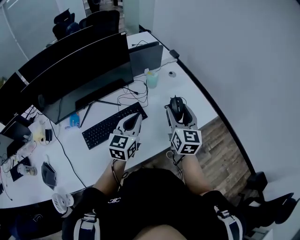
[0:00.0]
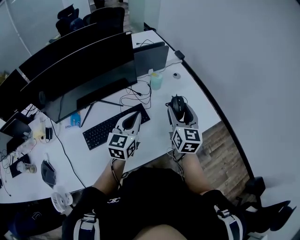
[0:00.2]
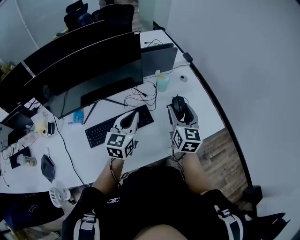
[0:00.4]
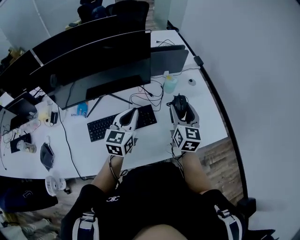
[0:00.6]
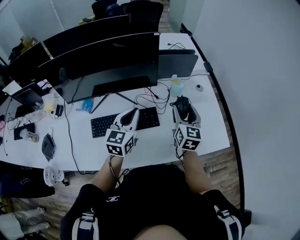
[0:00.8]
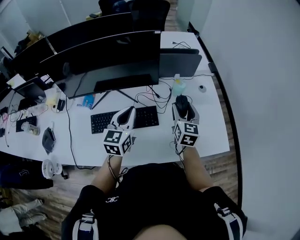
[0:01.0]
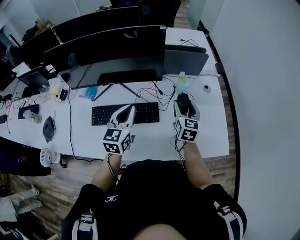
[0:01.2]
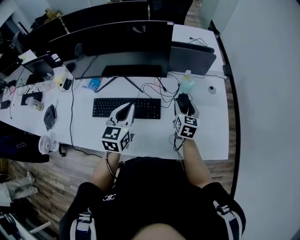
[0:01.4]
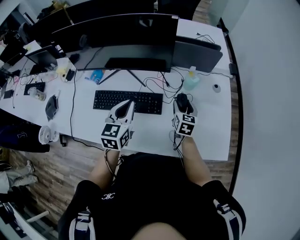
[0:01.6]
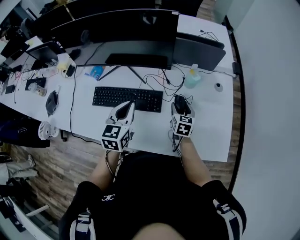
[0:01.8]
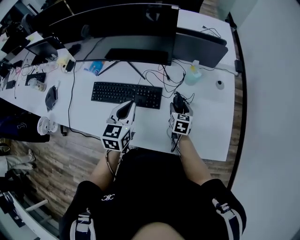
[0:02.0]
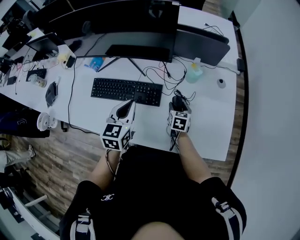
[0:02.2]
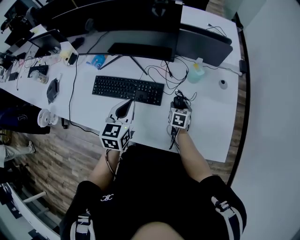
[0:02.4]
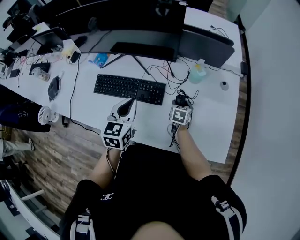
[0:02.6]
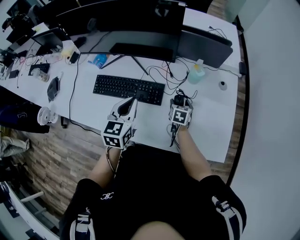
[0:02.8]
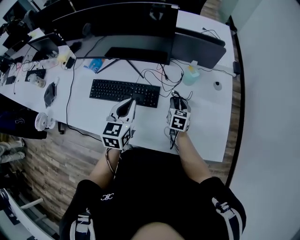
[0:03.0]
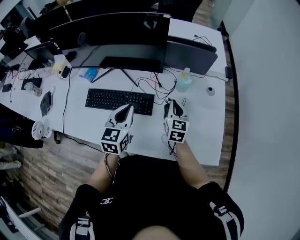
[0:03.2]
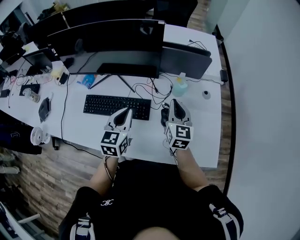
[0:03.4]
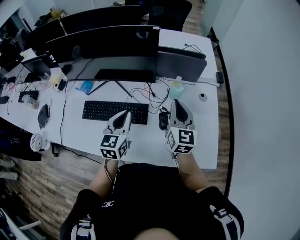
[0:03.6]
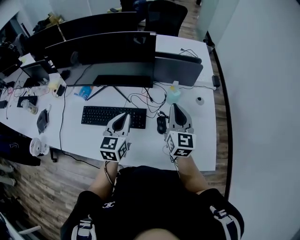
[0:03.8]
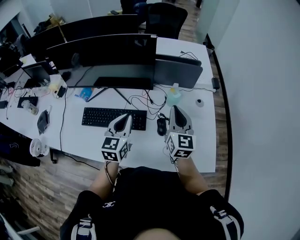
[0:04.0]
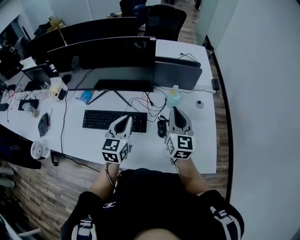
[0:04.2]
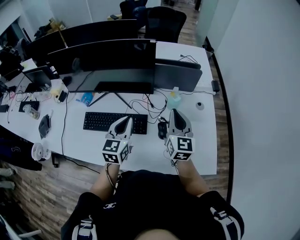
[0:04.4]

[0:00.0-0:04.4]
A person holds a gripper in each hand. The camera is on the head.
0:00.0 to 0:01.4: The right gripper ends up about 25 cm from where it was, and swivels some 30 degrees. The left gripper shifts by about 10 cm, and changes its angle by about 40 degrees.
0:01.4 to 0:03.0: The left gripper moves about 5 cm. Meanwhile the right gripper travels downward by roughly 10 cm.
0:03.0 to 0:04.4: The right gripper shifts some 25 cm upward, points its fingers about 30 degrees further upward, and closes up, while the left gripper heads upward, covering approximately 5 cm.

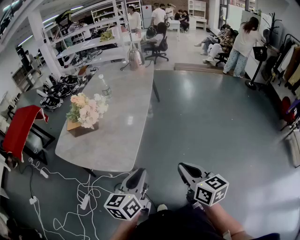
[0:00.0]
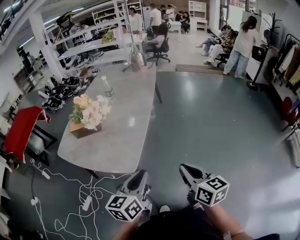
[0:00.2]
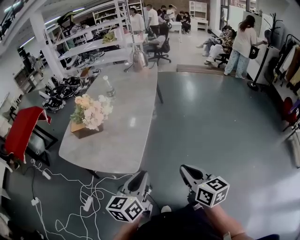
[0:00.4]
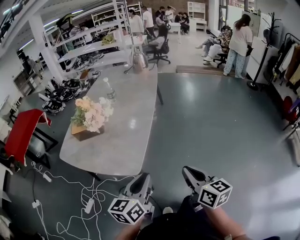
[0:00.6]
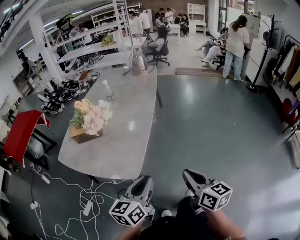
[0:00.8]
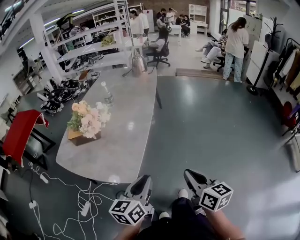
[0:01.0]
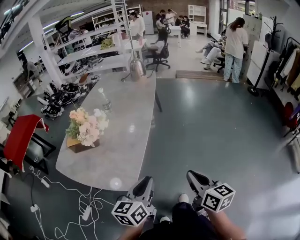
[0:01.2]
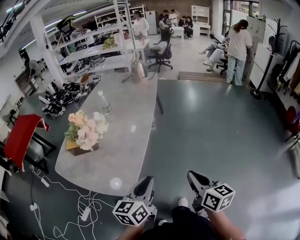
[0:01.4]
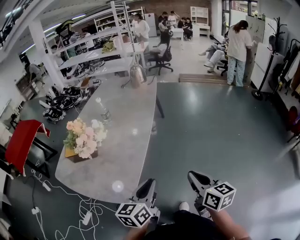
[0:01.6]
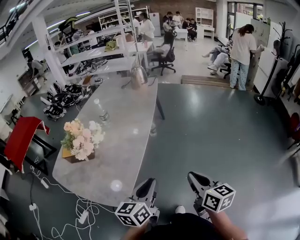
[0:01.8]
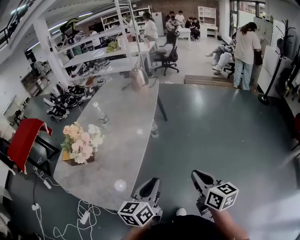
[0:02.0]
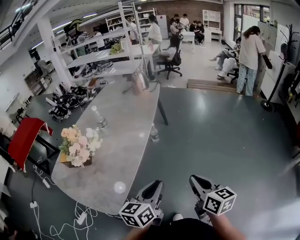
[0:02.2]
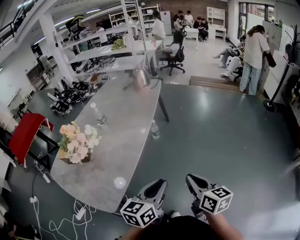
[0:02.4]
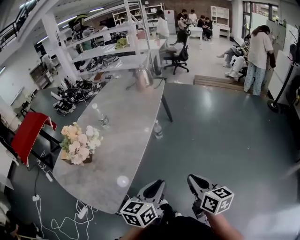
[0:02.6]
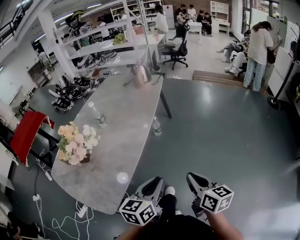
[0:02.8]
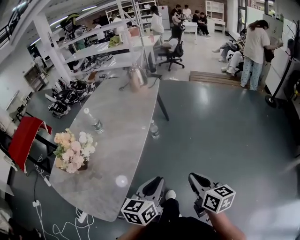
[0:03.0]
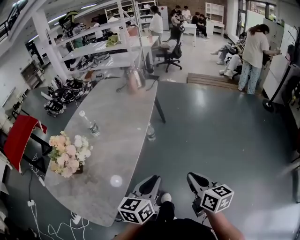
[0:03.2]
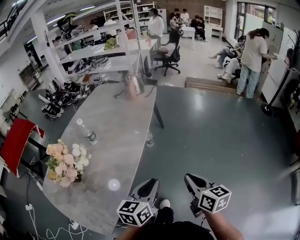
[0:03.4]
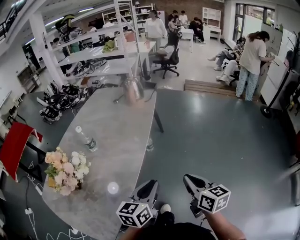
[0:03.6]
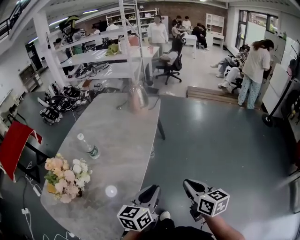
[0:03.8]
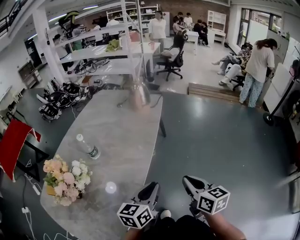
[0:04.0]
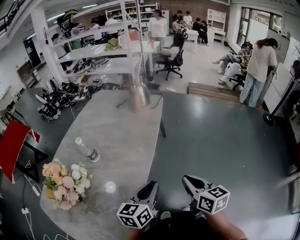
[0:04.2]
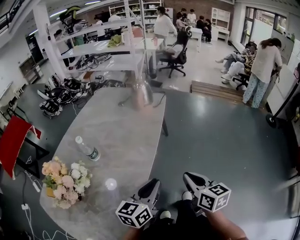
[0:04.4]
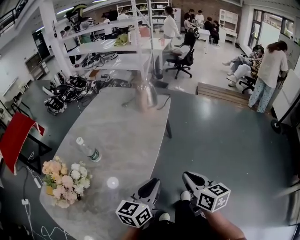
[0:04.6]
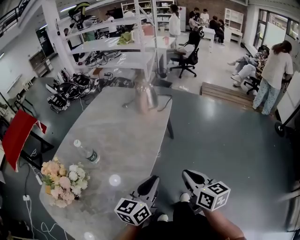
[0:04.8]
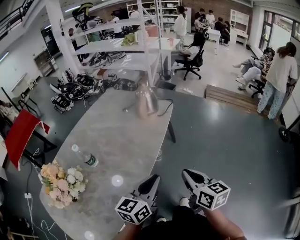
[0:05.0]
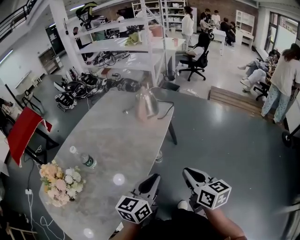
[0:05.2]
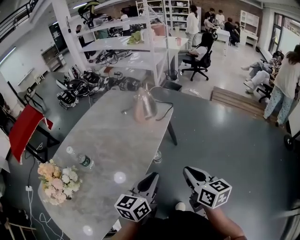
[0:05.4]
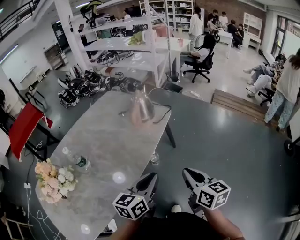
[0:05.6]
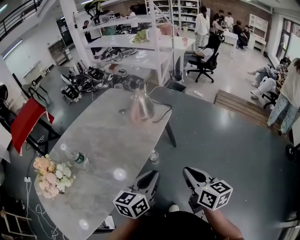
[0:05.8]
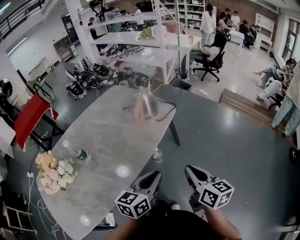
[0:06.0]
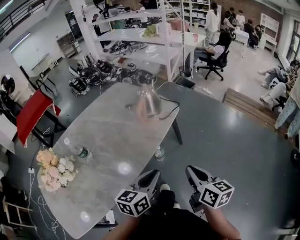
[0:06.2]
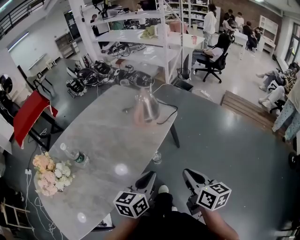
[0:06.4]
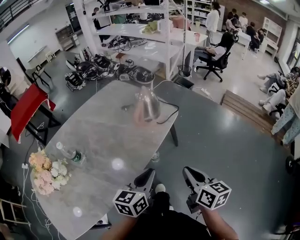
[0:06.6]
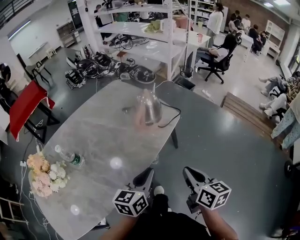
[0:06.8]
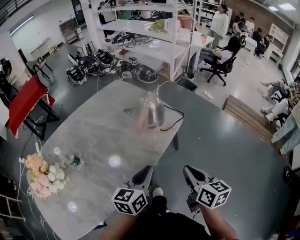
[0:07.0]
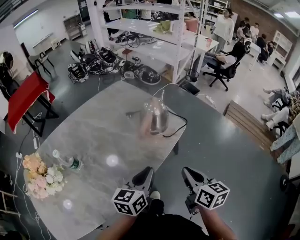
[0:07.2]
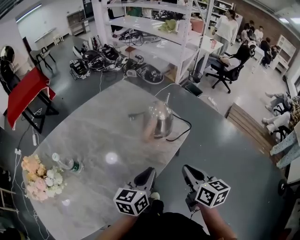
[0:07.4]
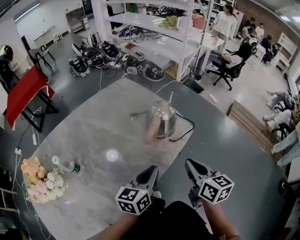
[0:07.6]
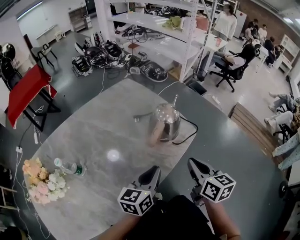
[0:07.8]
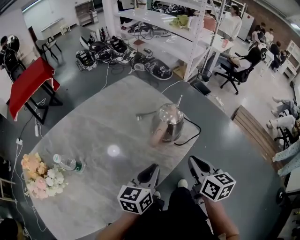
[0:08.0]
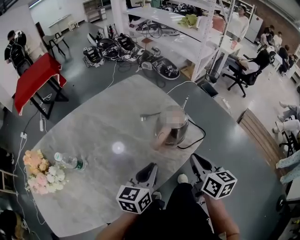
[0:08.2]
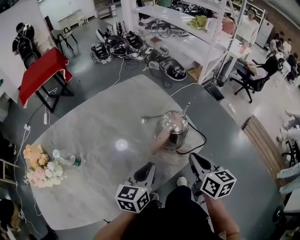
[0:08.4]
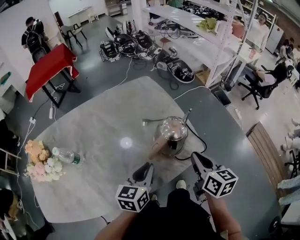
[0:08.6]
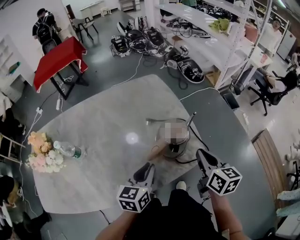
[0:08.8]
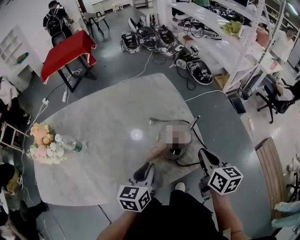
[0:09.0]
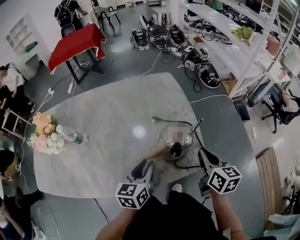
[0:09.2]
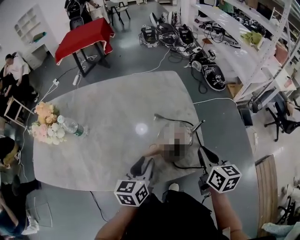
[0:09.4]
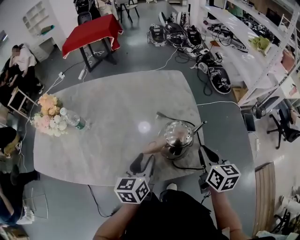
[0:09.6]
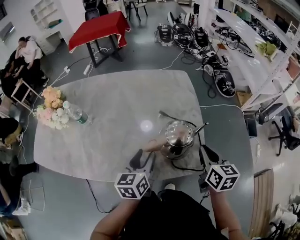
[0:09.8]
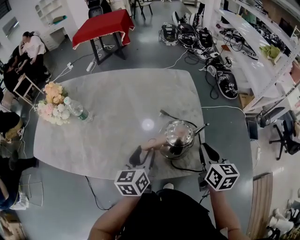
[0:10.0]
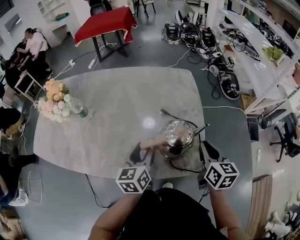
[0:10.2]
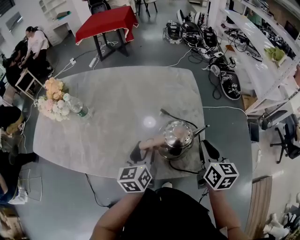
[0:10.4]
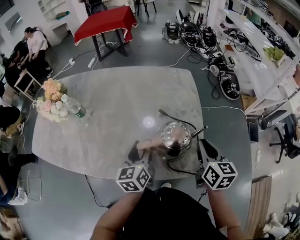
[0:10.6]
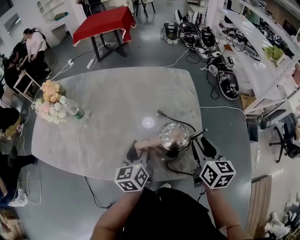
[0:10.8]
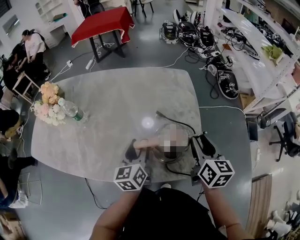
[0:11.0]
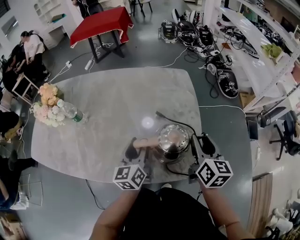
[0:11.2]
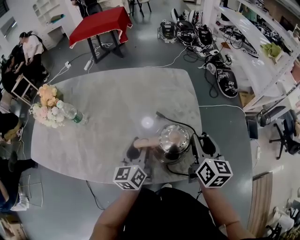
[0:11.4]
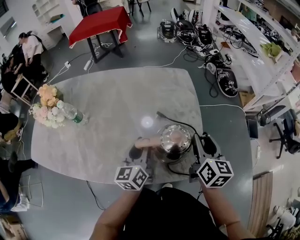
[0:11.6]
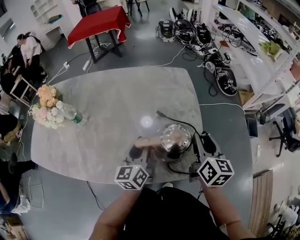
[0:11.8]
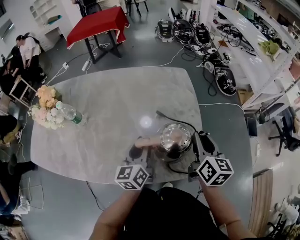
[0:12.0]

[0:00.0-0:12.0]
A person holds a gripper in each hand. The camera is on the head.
0:00.0 to 0:01.6: Both grippers travel together forward and to the right, some 15 cm.
0:01.6 to 0:03.0: The two grippers go roughly 20 cm forward and to the right.
0:03.0 to 0:04.4: The two grippers go roughly 25 cm forward.
0:04.4 to 0:06.0: Both grippers travel together forward and to the right, approximately 25 cm.
0:06.0 to 0:07.6: The grippers both shift forward by roughly 25 cm.
0:07.6 to 0:09.0: The right gripper ends up approximately 20 cm from where it was, and turns by approximately 20 degrees, while the left gripper shifts by about 10 cm, and changes its angle by approximately 30 degrees.
0:09.0 to 0:10.4: The left gripper changes its angle by about 30 degrees, and opens up. Meanwhile the right gripper shifts approximately 10 cm forward.
0:10.4 to 0:12.0: The grippers stay close to where they were, moving slightly.

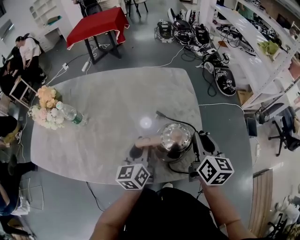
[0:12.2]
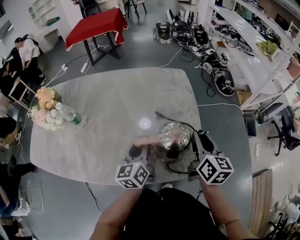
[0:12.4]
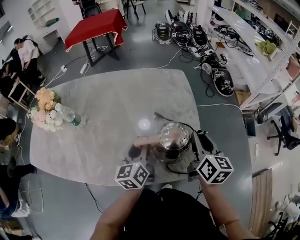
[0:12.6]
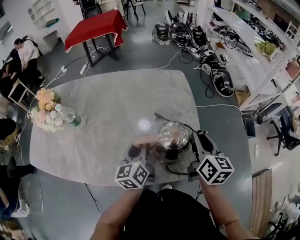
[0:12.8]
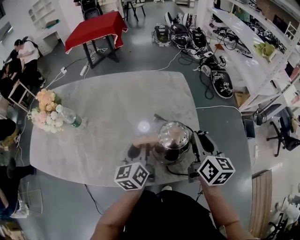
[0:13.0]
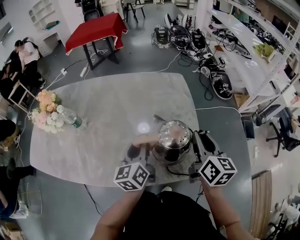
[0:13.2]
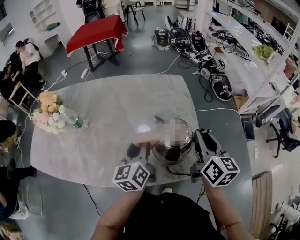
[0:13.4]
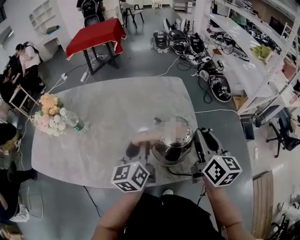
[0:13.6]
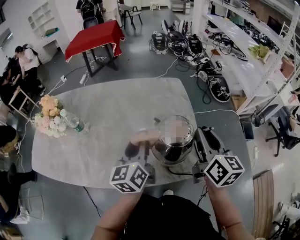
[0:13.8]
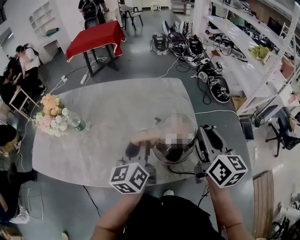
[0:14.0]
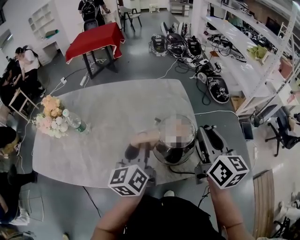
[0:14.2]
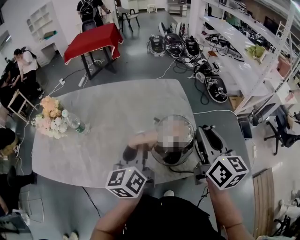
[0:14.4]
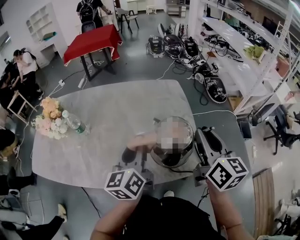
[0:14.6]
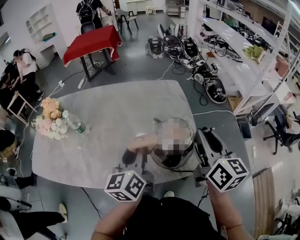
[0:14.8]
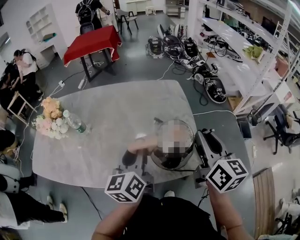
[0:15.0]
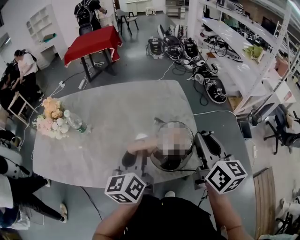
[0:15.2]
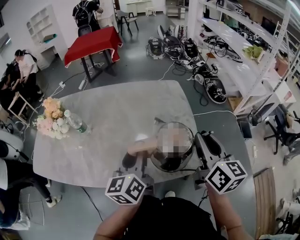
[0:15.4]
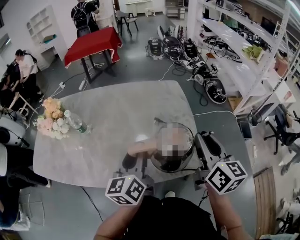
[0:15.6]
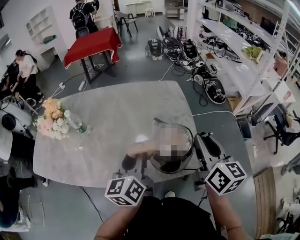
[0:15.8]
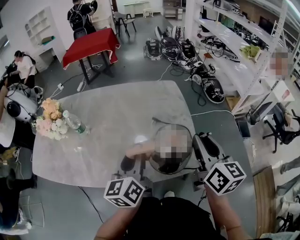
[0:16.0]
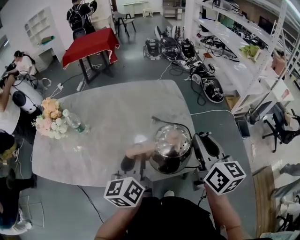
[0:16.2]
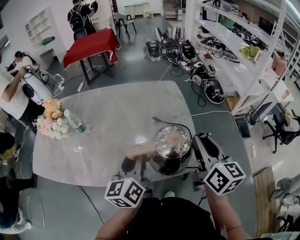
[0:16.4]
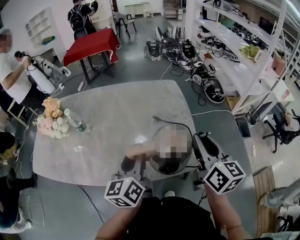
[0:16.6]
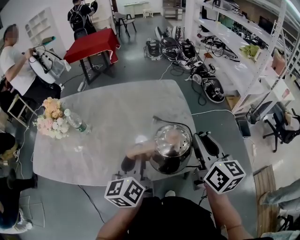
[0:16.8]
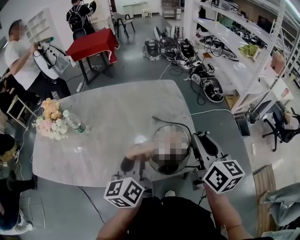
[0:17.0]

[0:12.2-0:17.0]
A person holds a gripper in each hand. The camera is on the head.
0:12.2 to 0:13.8: The two grippers go some 10 cm upward.
0:13.8 to 0:15.4: The two grippers go roughly 5 cm backward.
0:15.4 to 0:17.0: The grippers move only a little.

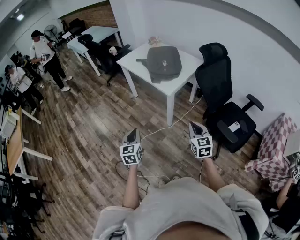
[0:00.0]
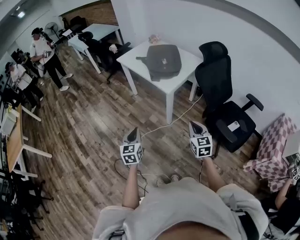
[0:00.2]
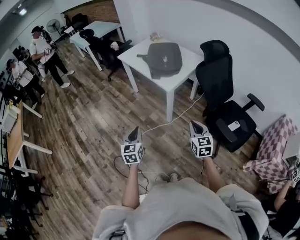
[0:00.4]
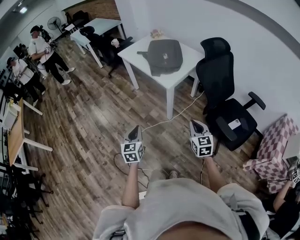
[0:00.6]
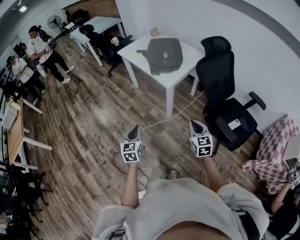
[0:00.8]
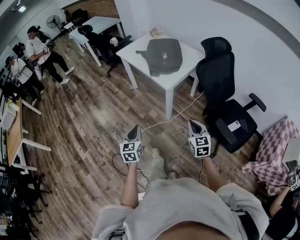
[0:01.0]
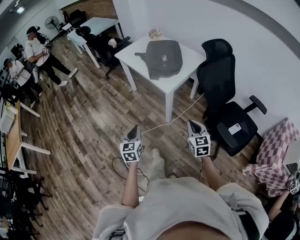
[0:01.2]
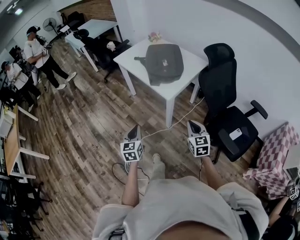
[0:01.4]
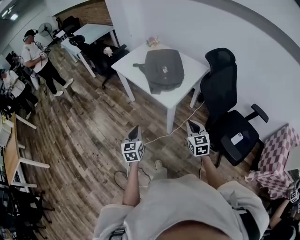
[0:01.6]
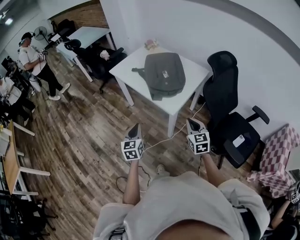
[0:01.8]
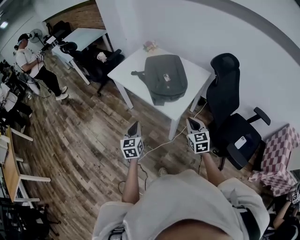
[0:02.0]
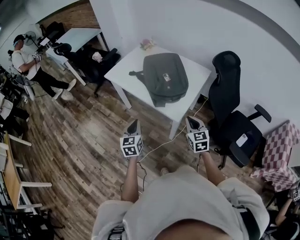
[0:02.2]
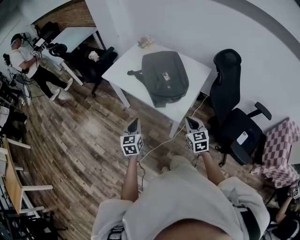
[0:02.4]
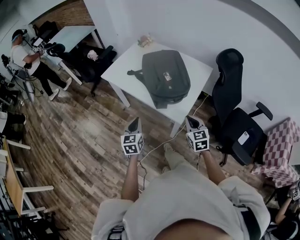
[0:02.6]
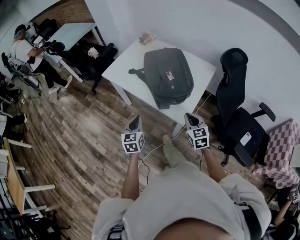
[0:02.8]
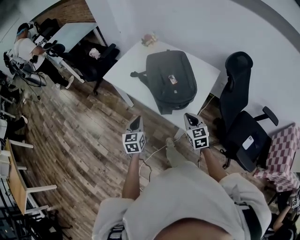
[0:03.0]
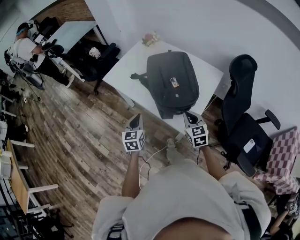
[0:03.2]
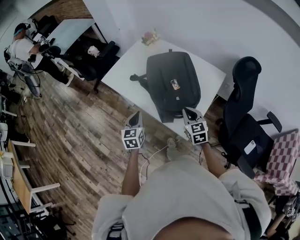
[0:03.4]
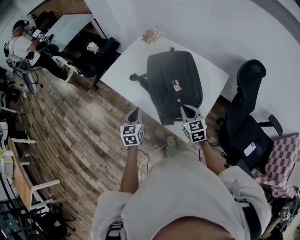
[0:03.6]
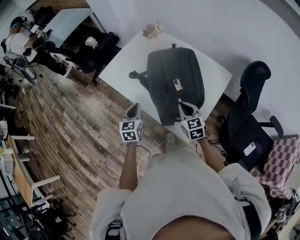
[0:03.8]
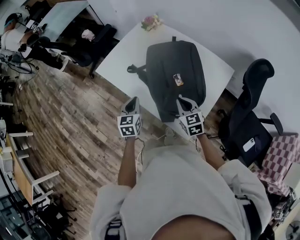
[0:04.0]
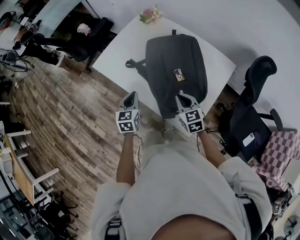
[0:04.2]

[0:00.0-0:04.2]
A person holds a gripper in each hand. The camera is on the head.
0:00.0 to 0:01.4: The two grippers go about 10 cm forward.
0:01.4 to 0:02.8: Both grippers move forward, roughly 30 cm.
0:02.8 to 0:04.2: The grippers both shift forward by approximately 25 cm.
